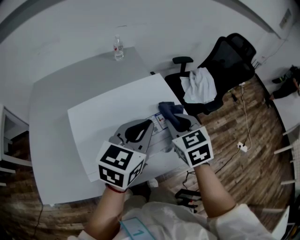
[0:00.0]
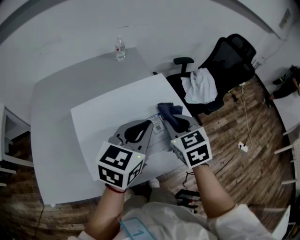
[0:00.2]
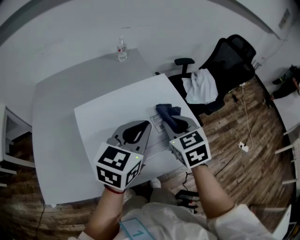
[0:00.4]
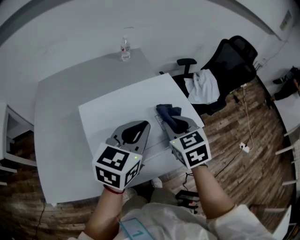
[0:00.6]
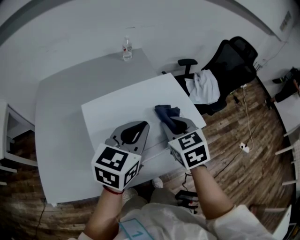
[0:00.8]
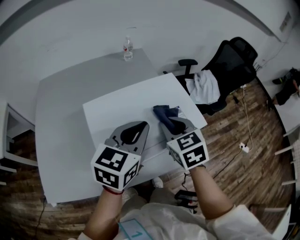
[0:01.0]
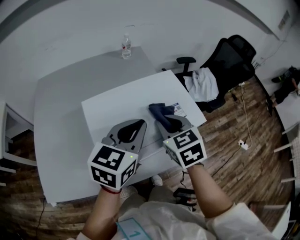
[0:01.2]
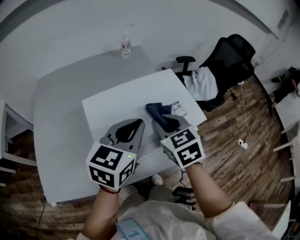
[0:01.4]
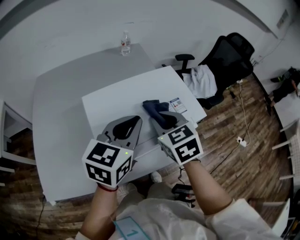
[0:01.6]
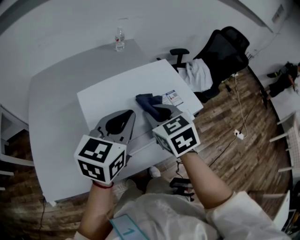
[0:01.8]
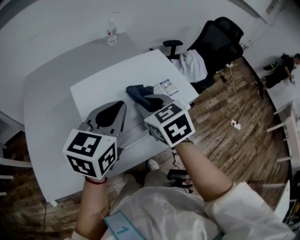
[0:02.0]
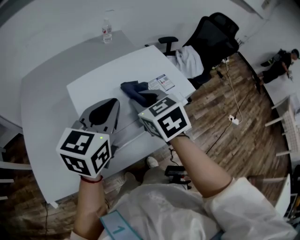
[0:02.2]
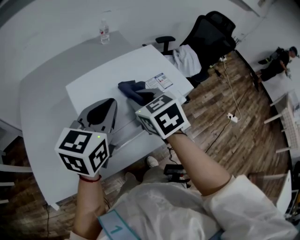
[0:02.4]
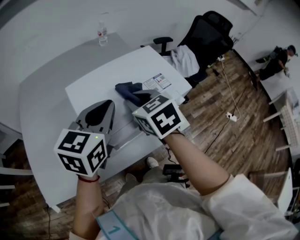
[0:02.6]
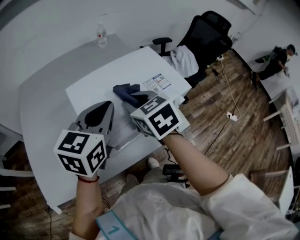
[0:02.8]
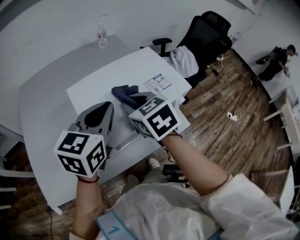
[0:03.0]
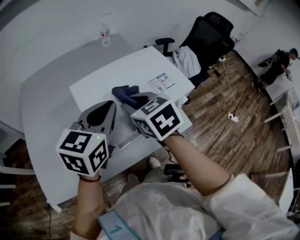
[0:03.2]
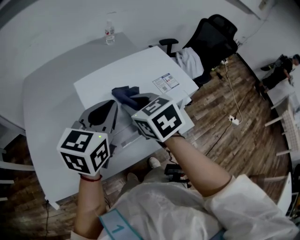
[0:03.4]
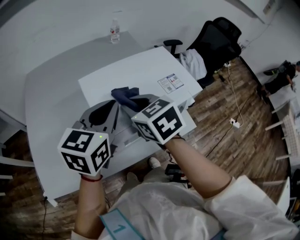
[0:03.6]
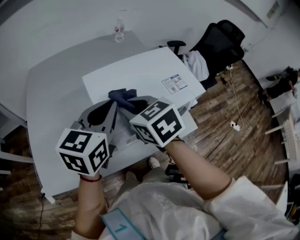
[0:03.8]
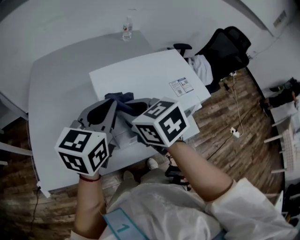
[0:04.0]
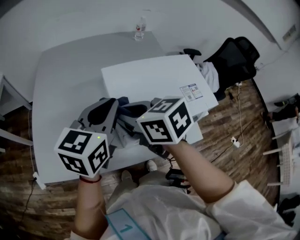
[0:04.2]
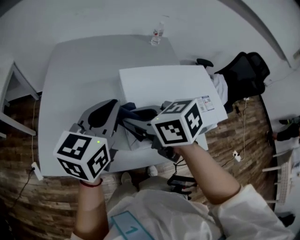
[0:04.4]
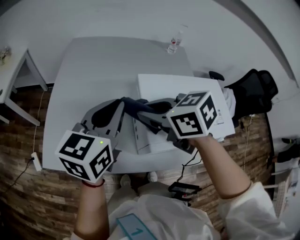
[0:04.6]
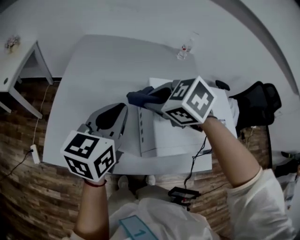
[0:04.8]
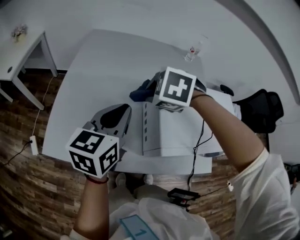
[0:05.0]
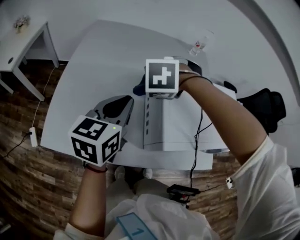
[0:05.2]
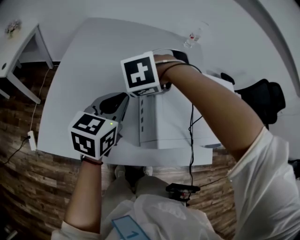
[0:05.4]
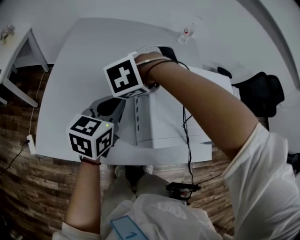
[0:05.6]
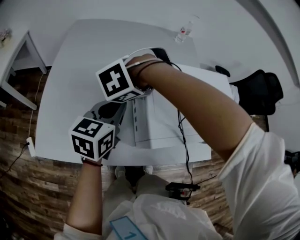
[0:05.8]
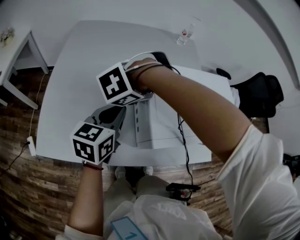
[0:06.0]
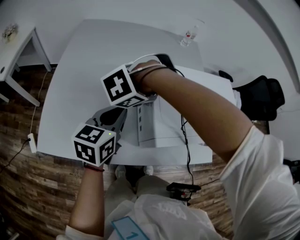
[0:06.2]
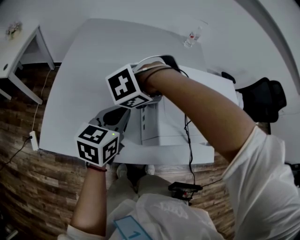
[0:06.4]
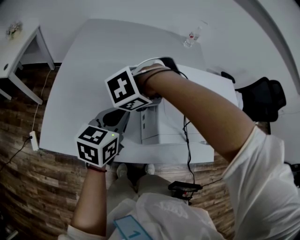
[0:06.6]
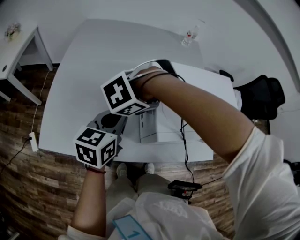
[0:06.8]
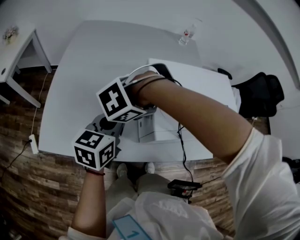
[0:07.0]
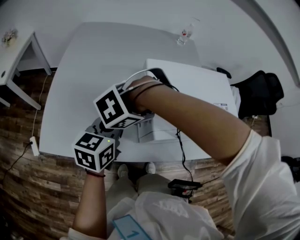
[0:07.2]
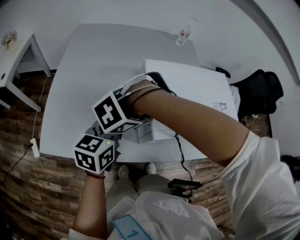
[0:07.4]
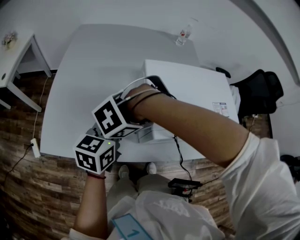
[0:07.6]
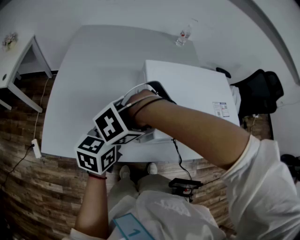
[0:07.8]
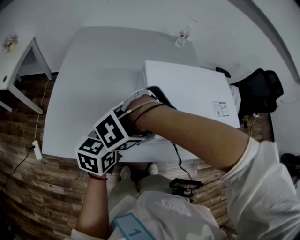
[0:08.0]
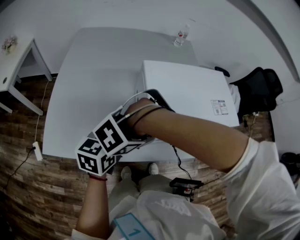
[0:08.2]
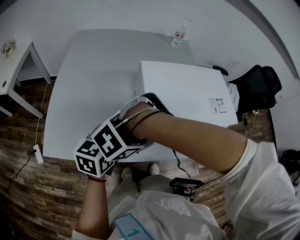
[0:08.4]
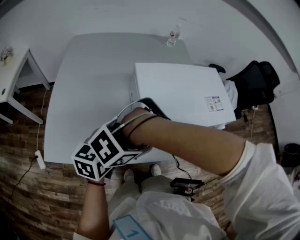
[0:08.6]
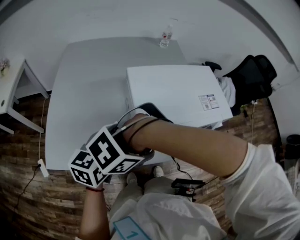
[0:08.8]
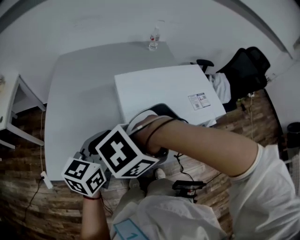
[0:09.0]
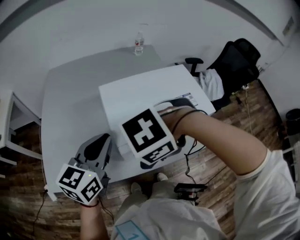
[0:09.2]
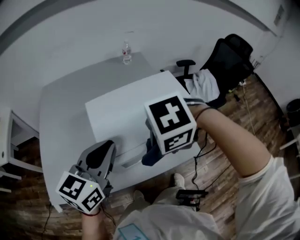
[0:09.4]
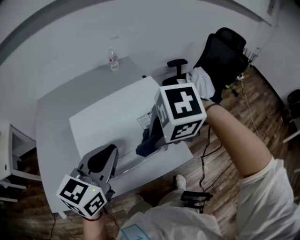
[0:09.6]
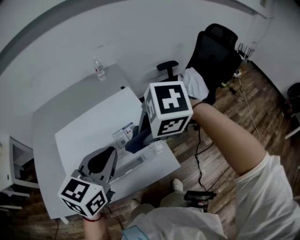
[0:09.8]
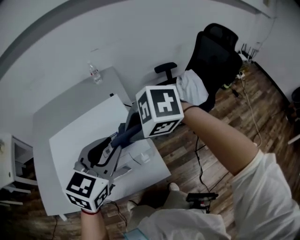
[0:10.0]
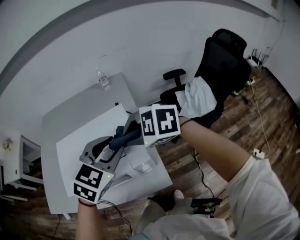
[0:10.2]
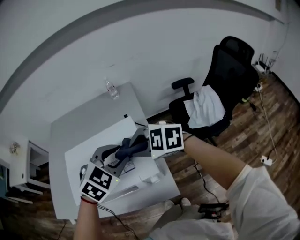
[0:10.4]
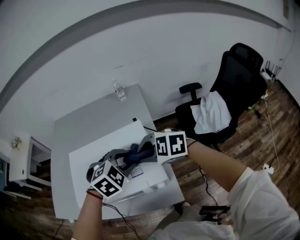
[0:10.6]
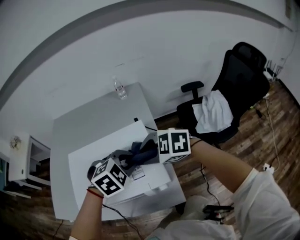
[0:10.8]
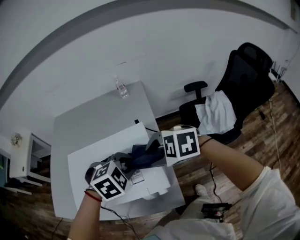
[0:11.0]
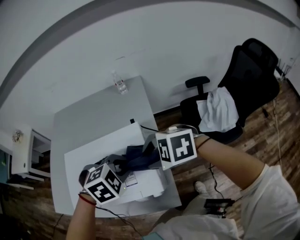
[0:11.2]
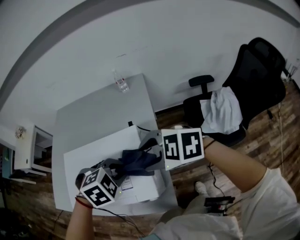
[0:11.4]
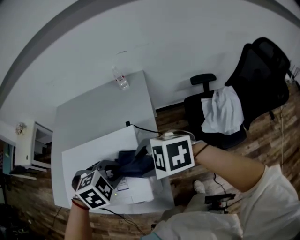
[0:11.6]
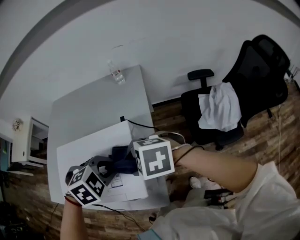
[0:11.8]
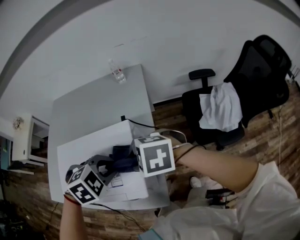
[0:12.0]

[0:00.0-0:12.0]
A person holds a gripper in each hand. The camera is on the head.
0:00.0 to 0:01.6: Both grippers travel together to the left and backward, about 10 cm.
0:01.6 to 0:03.0: The right gripper shifts about 5 cm to the left.
0:03.0 to 0:04.4: The left gripper moves some 15 cm, and turns by roughly 20 degrees. The right gripper shifts by some 20 cm, and turns by some 40 degrees.
0:04.4 to 0:06.0: Both grippers travel together downward, about 10 cm. The right gripper points its fingers approximately 40 degrees further downward.
0:06.0 to 0:07.6: The left gripper ends up about 5 cm from where it was, while the right gripper moves about 10 cm.
0:07.6 to 0:09.0: The left gripper is displaced upward by roughly 5 cm; the right gripper moves roughly 15 cm.
0:09.0 to 0:10.4: The left gripper shifts by some 40 cm, rolls clockwise, seen from behind, by approximately 50 degrees, and opens up. Meanwhile the right gripper moves approximately 40 cm, and swivels some 80 degrees.
0:10.4 to 0:12.0: The left gripper moves downward, about 5 cm, and rotates some 30 degrees. The right gripper moves roughly 5 cm, and opens, then closes once more.

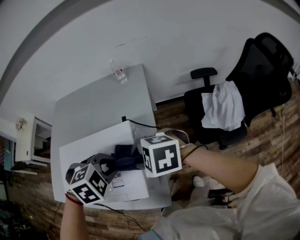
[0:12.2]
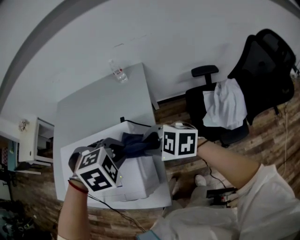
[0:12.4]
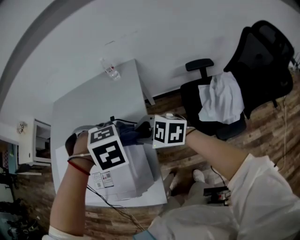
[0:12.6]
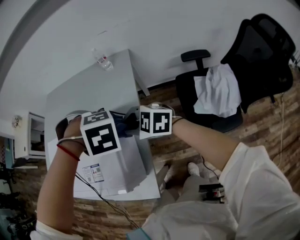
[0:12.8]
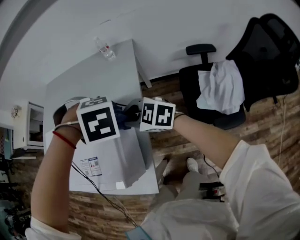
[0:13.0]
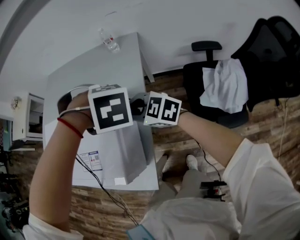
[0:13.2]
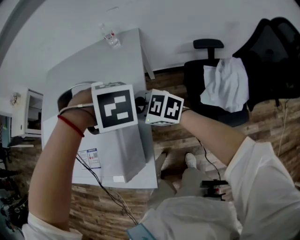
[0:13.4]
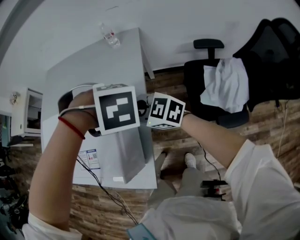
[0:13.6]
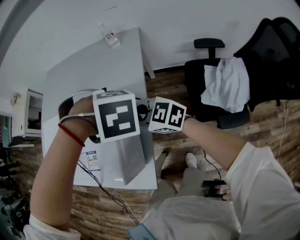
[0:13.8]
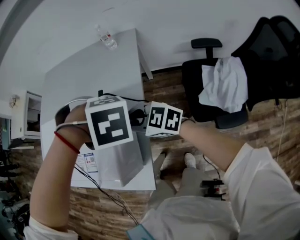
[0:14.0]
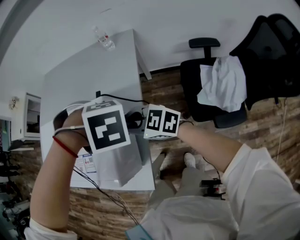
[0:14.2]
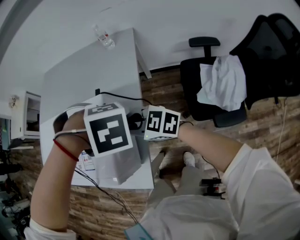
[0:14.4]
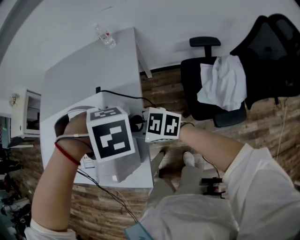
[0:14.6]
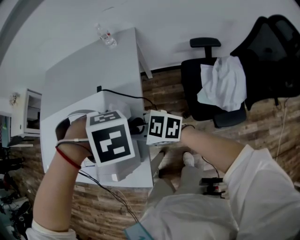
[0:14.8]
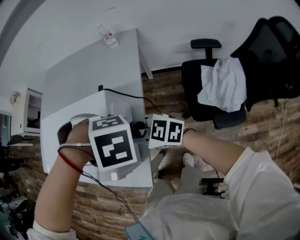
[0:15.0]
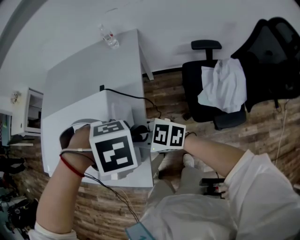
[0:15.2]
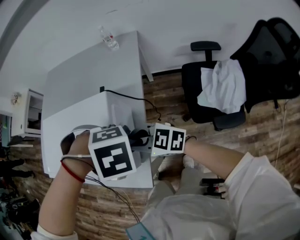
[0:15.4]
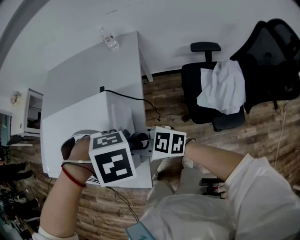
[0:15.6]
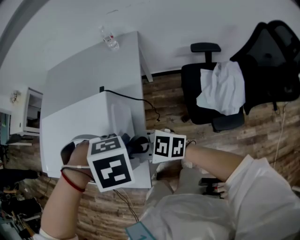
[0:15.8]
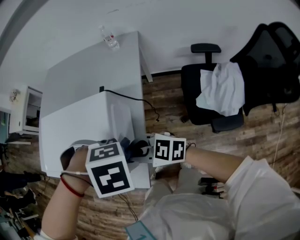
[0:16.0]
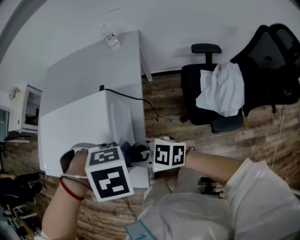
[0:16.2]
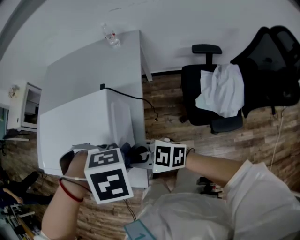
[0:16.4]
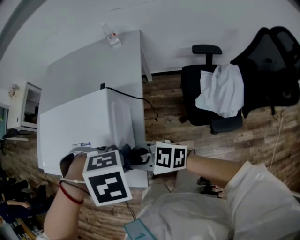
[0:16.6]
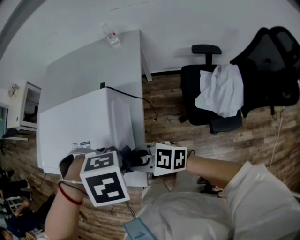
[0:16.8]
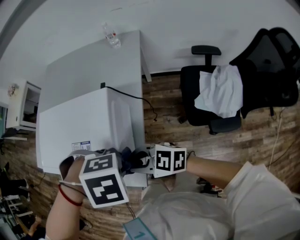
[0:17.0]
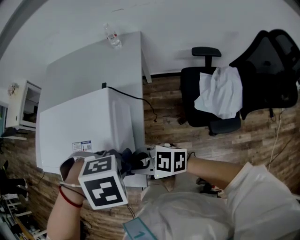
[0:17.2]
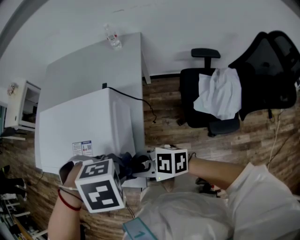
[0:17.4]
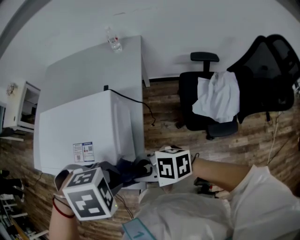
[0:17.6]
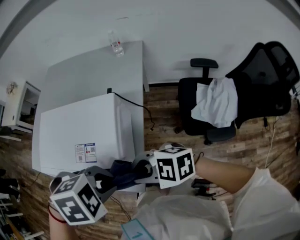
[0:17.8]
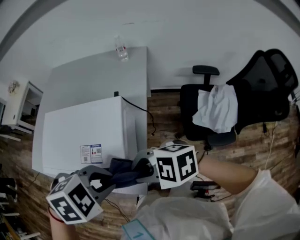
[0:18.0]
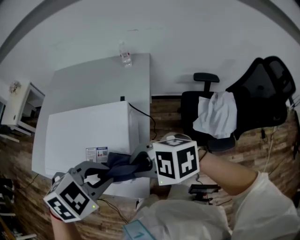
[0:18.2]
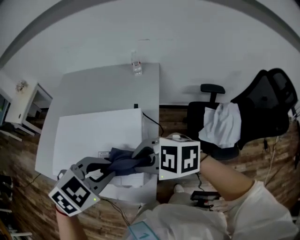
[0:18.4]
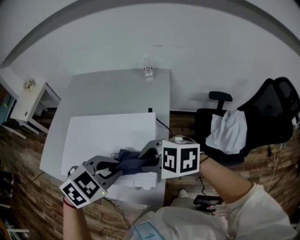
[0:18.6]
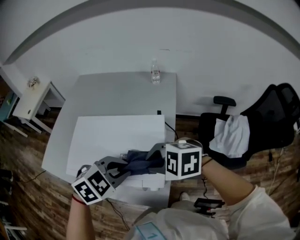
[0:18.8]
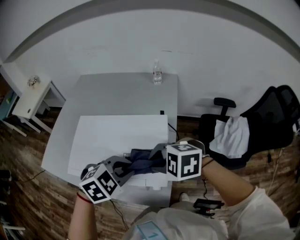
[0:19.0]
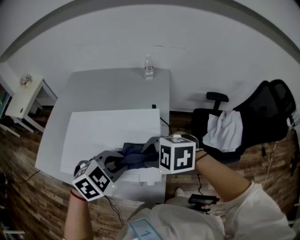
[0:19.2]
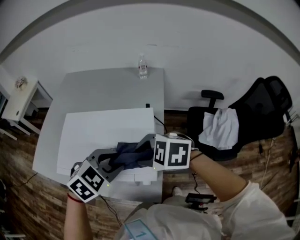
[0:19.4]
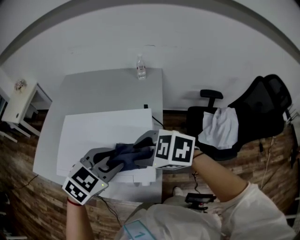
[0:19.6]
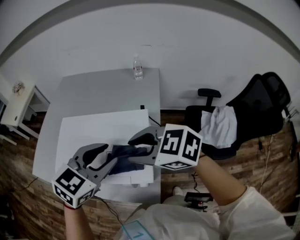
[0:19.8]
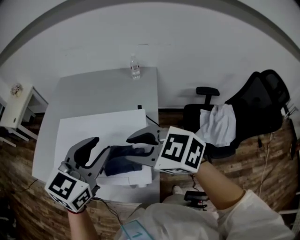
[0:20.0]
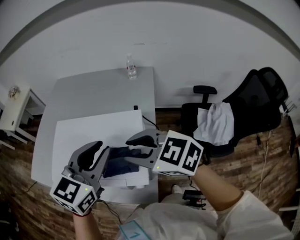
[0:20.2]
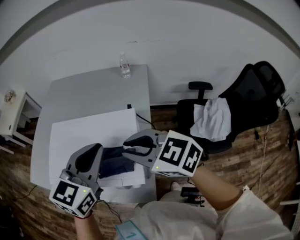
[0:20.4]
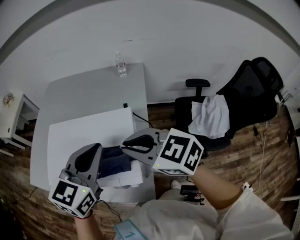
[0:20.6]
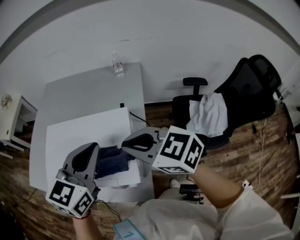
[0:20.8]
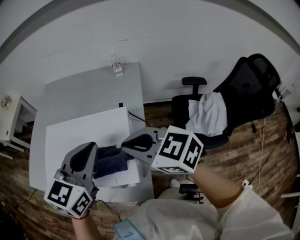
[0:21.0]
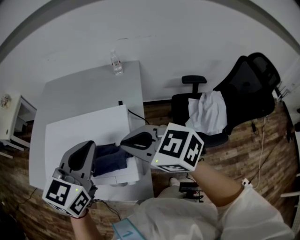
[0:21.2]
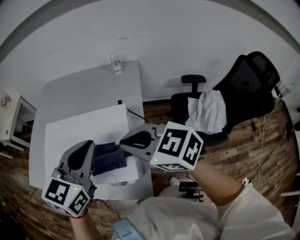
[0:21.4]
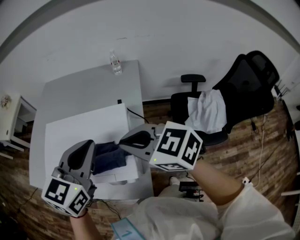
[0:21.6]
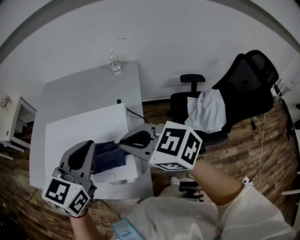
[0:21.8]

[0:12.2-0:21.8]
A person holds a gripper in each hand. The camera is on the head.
0:12.2 to 0:13.8: The left gripper moves about 10 cm, and turns by some 30 degrees, while the right gripper moves downward, some 10 cm, and swivels roughly 30 degrees.
0:13.8 to 0:15.4: The left gripper shifts by approximately 10 cm. Meanwhile the right gripper changes place by approximately 10 cm.
0:15.4 to 0:17.0: The left gripper shifts by roughly 5 cm. Meanwhile the right gripper changes place by roughly 10 cm.
0:17.0 to 0:18.6: The left gripper changes place by about 15 cm, and rotates about 50 degrees; the right gripper shifts approximately 10 cm upward, and changes its angle by approximately 30 degrees.
0:18.6 to 0:20.2: Both grippers travel together upward, about 5 cm. The right gripper changes its angle by roughly 30 degrees; the left gripper angles its fingers upward, by approximately 30 degrees.
0:20.2 to 0:21.8: The right gripper closes. The left gripper closes.

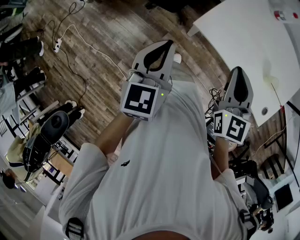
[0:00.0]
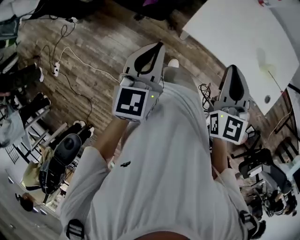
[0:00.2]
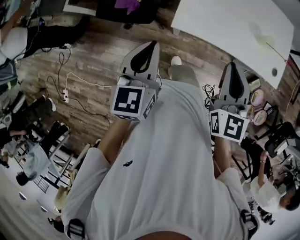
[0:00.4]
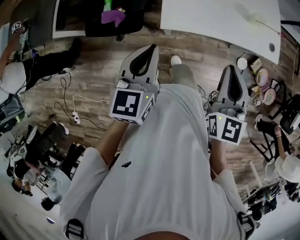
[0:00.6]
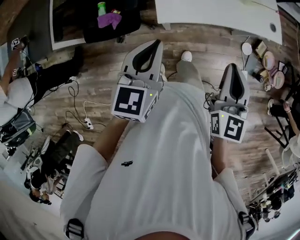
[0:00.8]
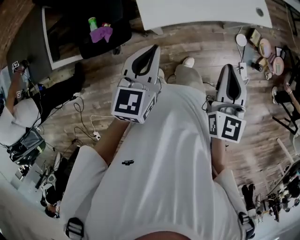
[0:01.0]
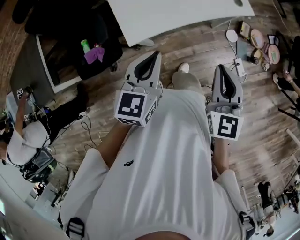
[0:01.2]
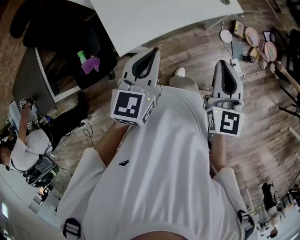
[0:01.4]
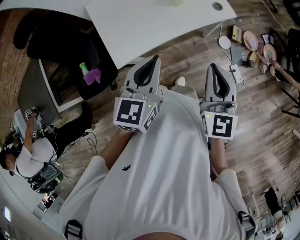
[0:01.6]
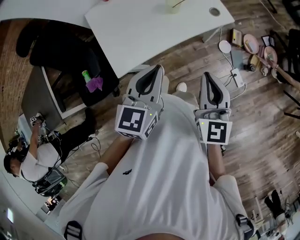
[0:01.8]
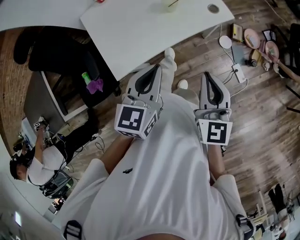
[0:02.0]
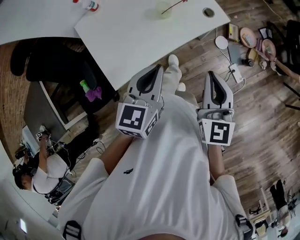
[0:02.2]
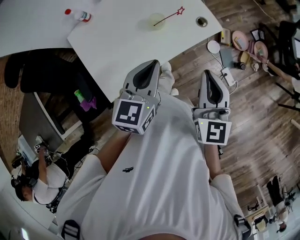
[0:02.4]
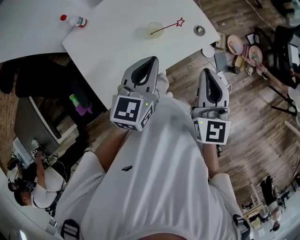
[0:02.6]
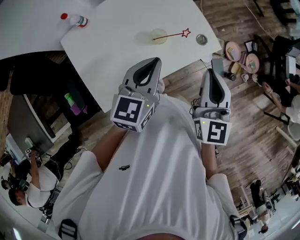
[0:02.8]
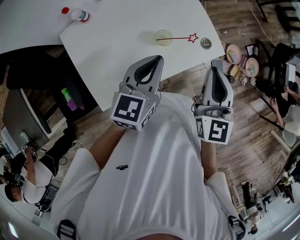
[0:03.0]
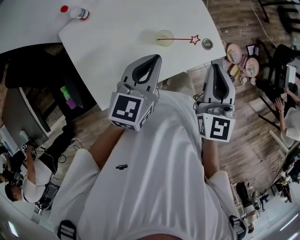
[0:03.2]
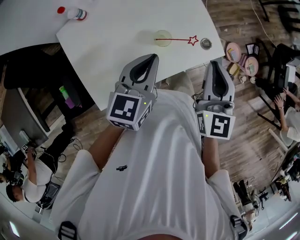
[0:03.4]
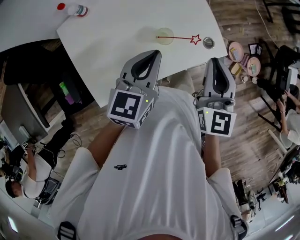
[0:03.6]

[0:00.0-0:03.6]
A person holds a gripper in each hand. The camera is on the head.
0:00.0 to 0:01.8: The right gripper ends up about 30 cm from where it was, and swivels roughly 50 degrees; the left gripper ends up approximately 30 cm from where it was, and swivels some 60 degrees.
0:01.8 to 0:03.6: The two grippers go approximately 30 cm forward.
